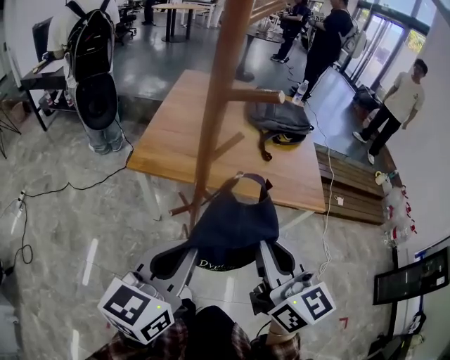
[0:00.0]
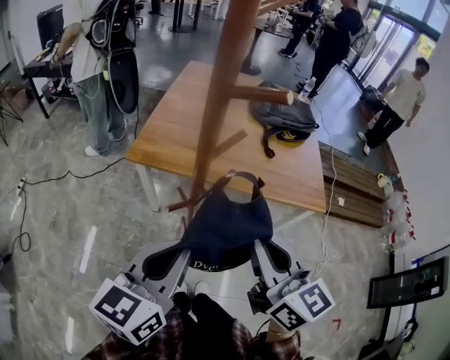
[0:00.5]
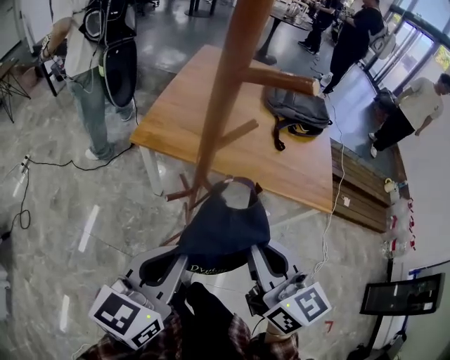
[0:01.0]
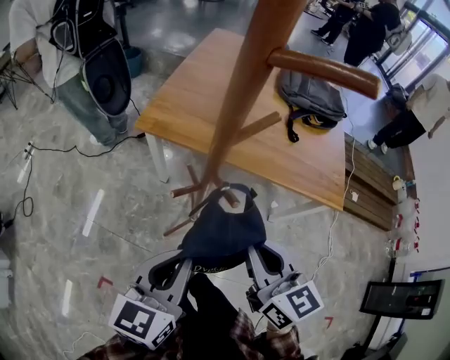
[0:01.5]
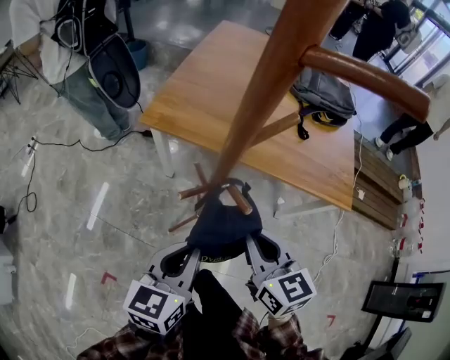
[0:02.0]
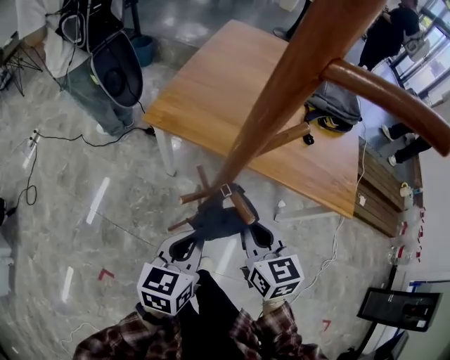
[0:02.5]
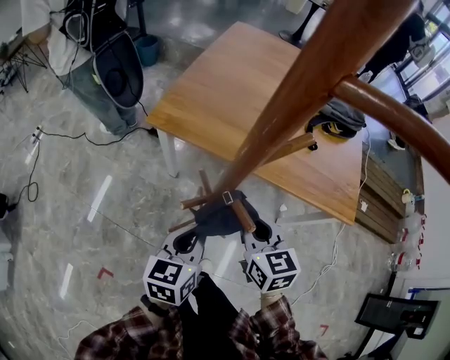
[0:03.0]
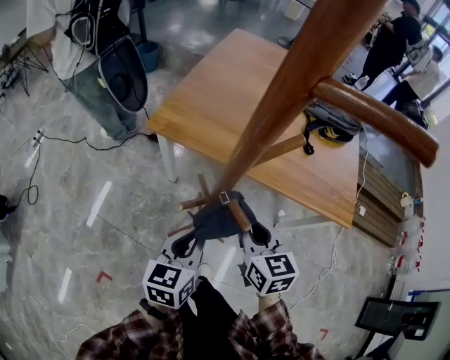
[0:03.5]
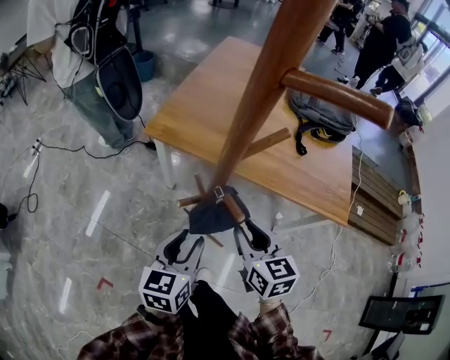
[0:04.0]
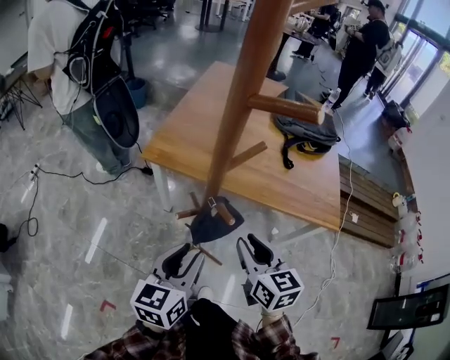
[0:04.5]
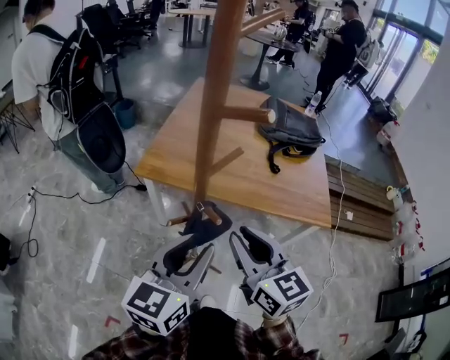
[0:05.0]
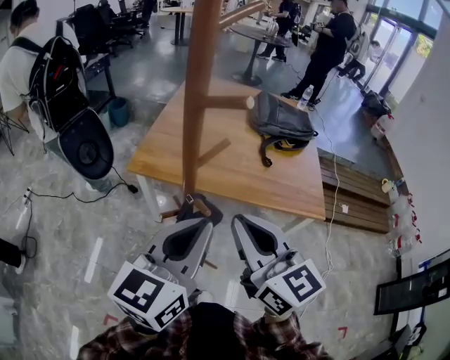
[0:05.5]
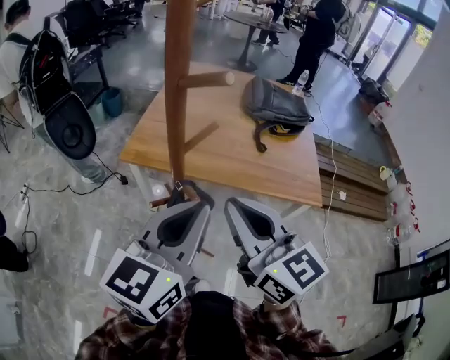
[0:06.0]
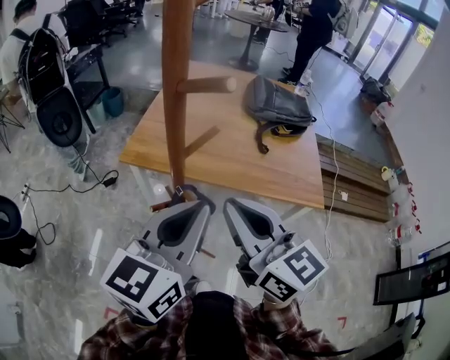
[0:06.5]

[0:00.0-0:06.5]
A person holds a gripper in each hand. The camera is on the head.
0:00.0 to 0:02.0: The right gripper moves downward and forward, roughly 20 cm, and changes its angle by some 20 degrees. The left gripper travels downward by about 15 cm.
0:02.0 to 0:04.5: The left gripper moves approximately 5 cm downward and comes back, and opens its fingers.
0:04.5 to 0:06.5: Both grippers travel together upward, roughly 20 cm. The left gripper closes up. The right gripper swivels roughly 20 degrees, and closes its fingers.

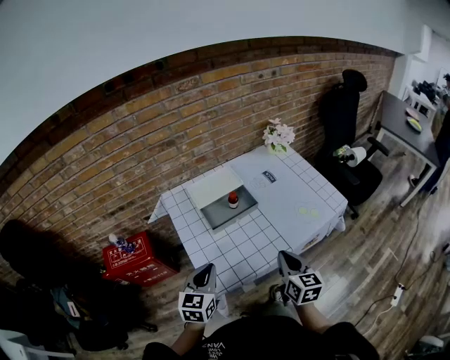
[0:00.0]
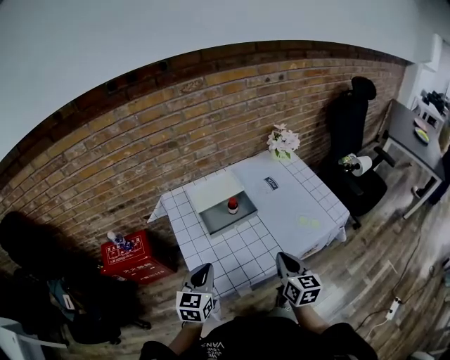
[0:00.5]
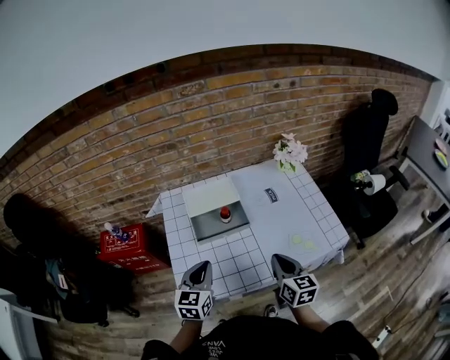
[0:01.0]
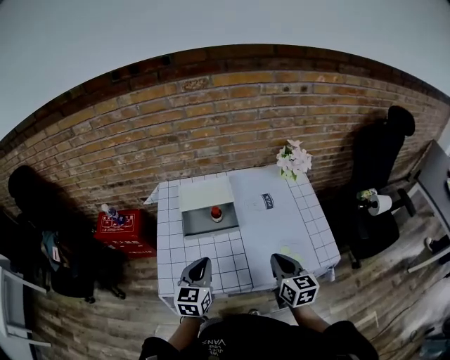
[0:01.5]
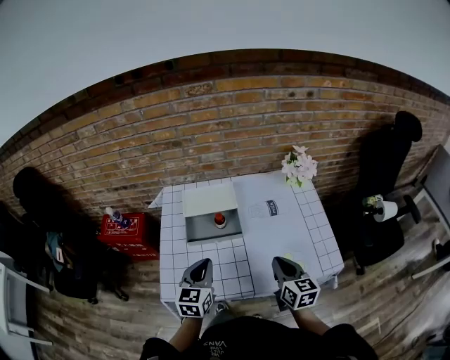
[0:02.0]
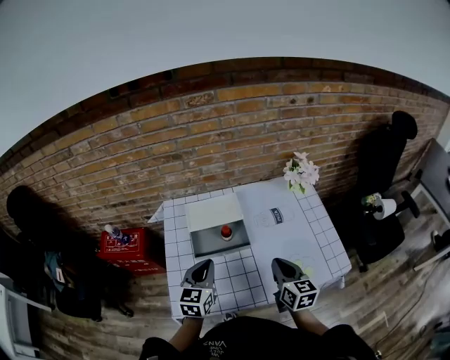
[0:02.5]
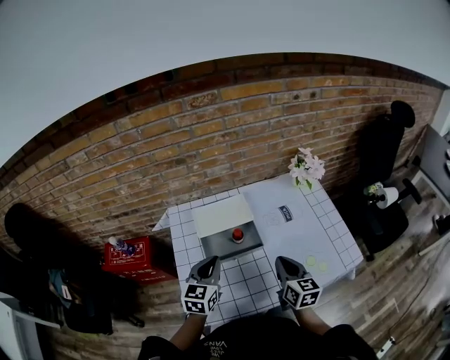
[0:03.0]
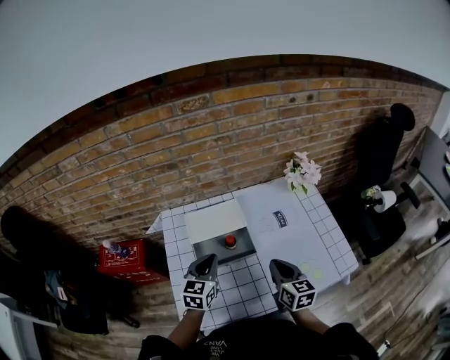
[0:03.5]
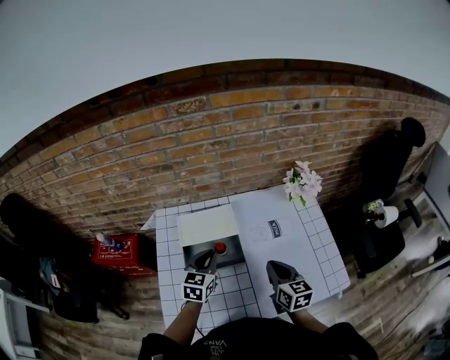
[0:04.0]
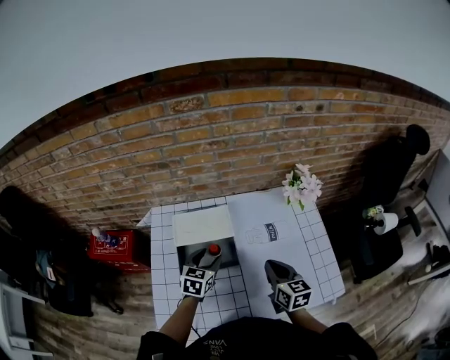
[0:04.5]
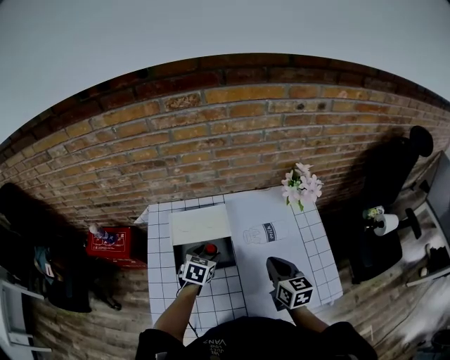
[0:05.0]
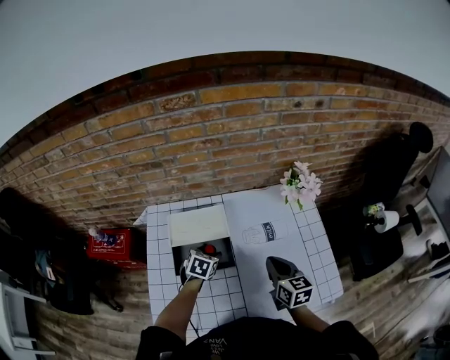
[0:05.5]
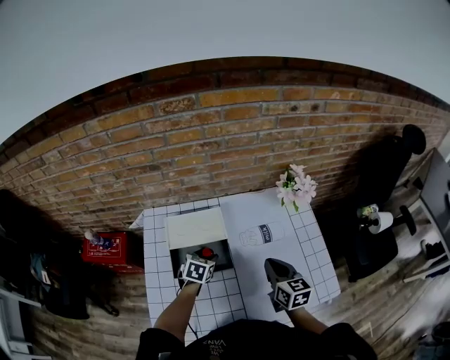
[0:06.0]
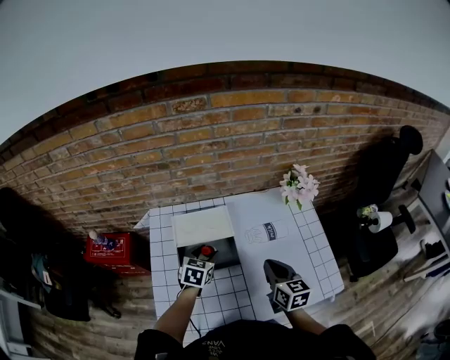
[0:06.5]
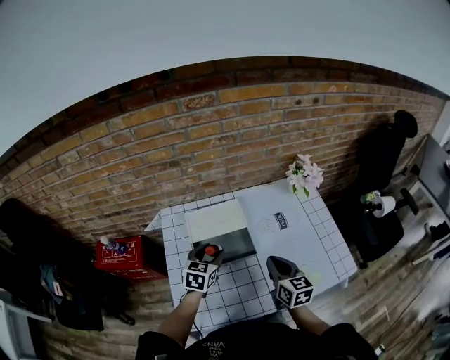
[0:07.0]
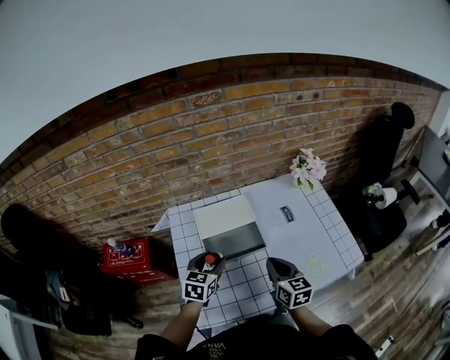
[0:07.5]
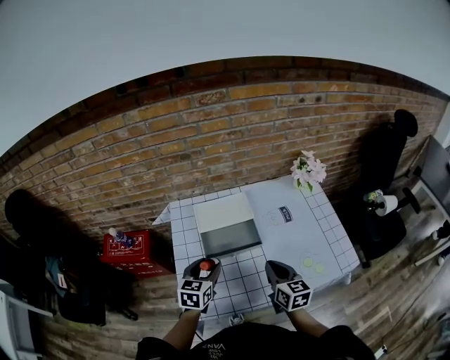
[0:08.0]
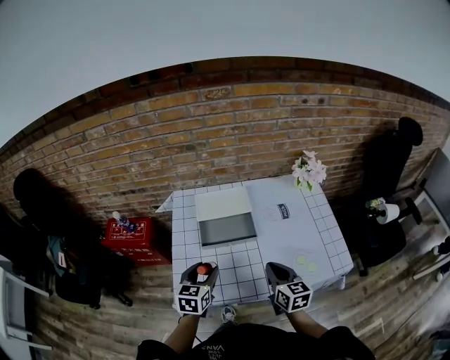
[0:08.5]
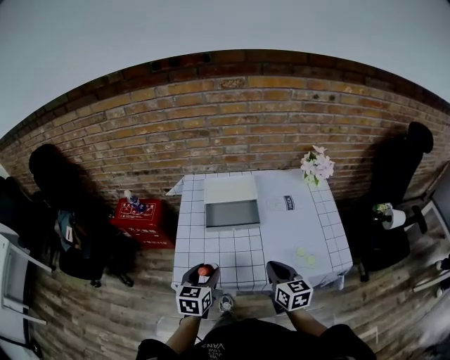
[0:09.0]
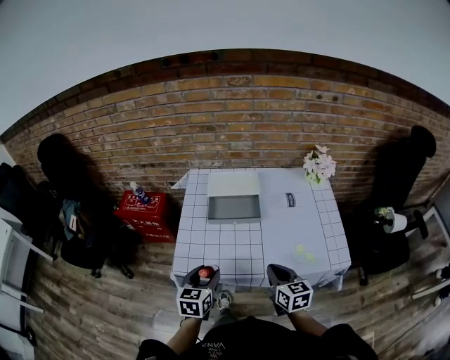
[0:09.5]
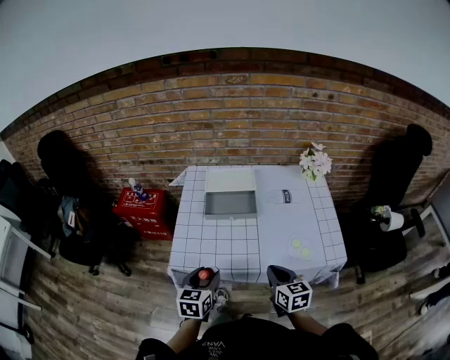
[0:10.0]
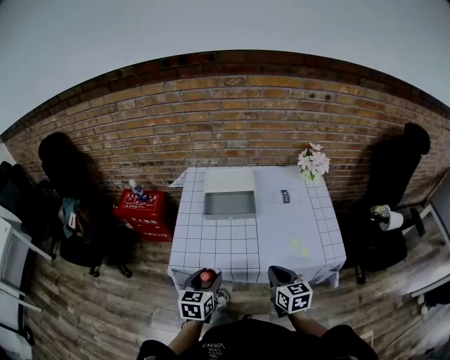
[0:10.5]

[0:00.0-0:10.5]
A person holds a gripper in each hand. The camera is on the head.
0:00.0 to 0:02.0: The left gripper travels to the right and forward by some 20 cm, and swivels roughly 20 degrees. The right gripper heads forward and to the right, covering about 20 cm, and swivels roughly 20 degrees.
0:02.0 to 0:04.0: The right gripper goes about 10 cm forward, while the left gripper is displaced forward by about 15 cm.
0:04.0 to 0:06.5: The left gripper moves downward, about 5 cm, and opens.
0:06.5 to 0:08.5: The left gripper is displaced backward by about 20 cm. Meanwhile the right gripper travels backward by approximately 15 cm.
0:08.5 to 0:10.5: The two grippers go roughly 15 cm backward.

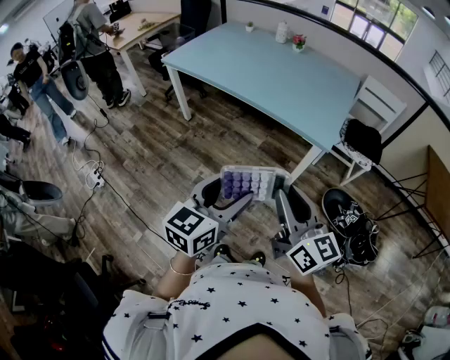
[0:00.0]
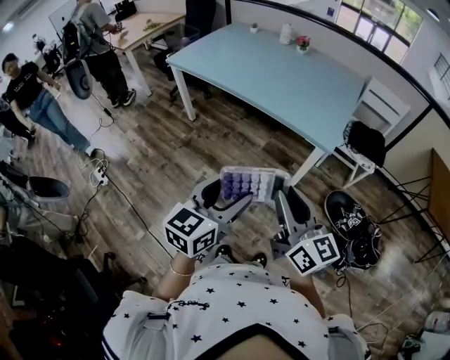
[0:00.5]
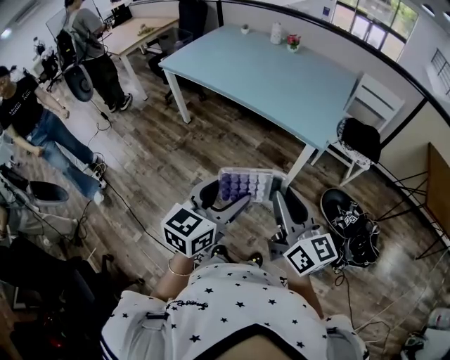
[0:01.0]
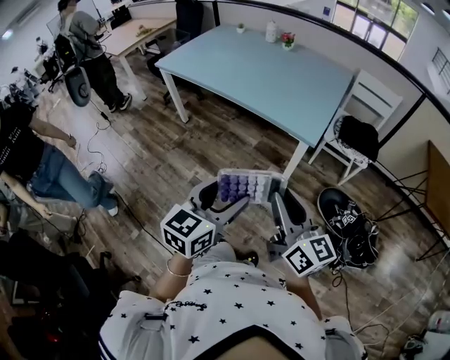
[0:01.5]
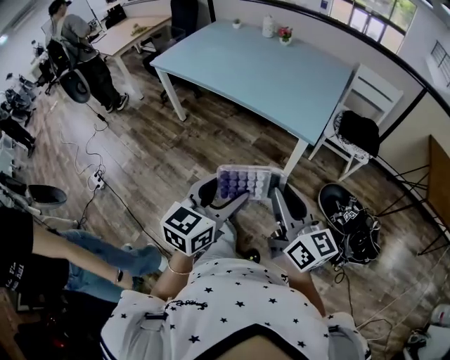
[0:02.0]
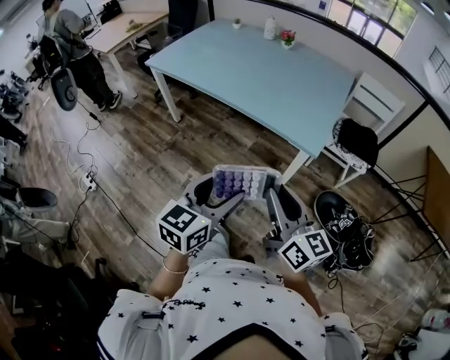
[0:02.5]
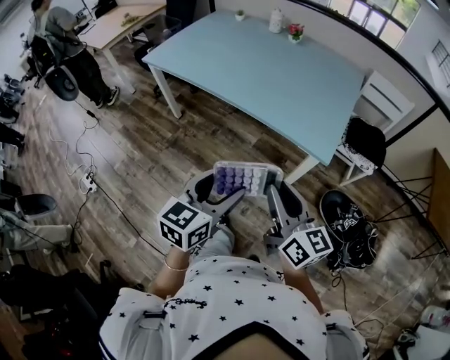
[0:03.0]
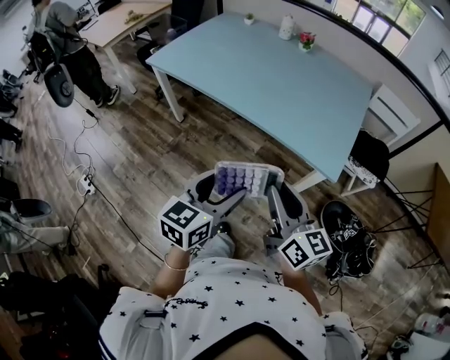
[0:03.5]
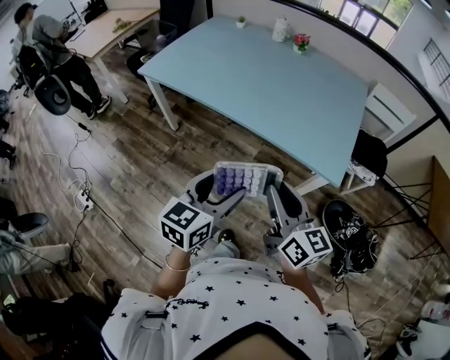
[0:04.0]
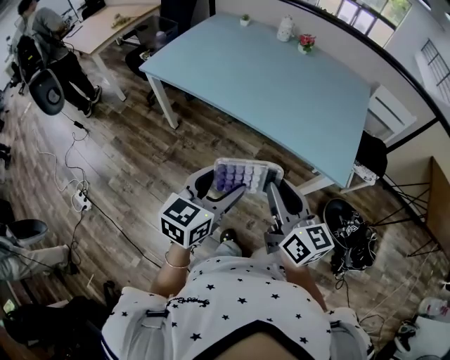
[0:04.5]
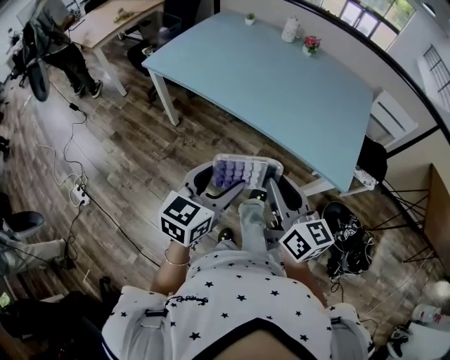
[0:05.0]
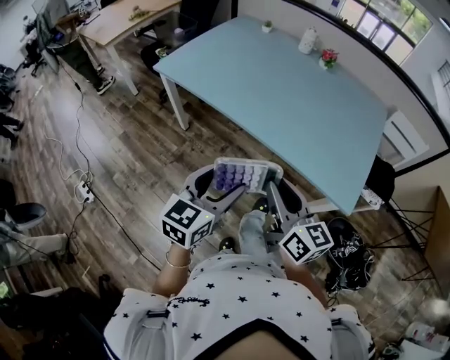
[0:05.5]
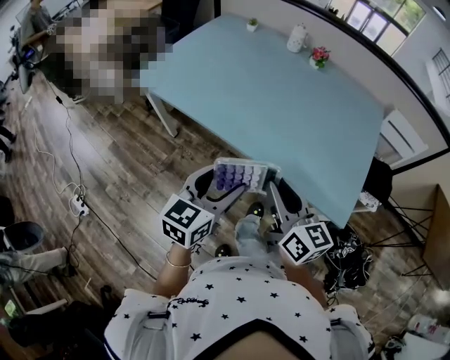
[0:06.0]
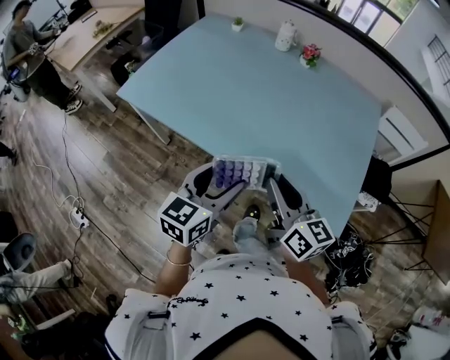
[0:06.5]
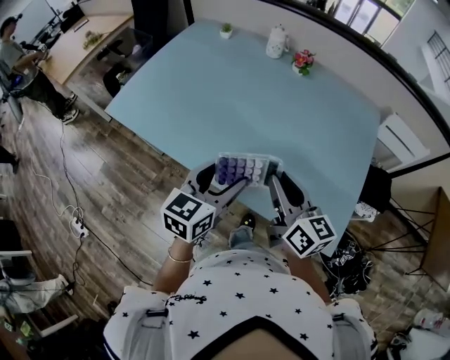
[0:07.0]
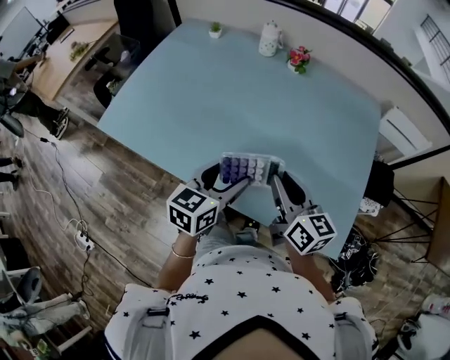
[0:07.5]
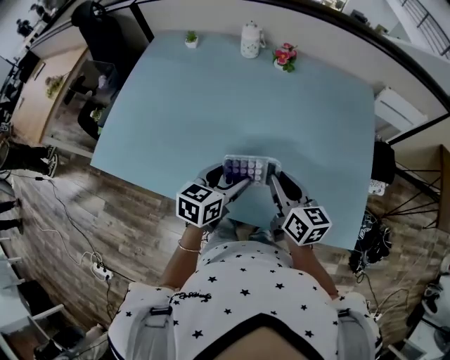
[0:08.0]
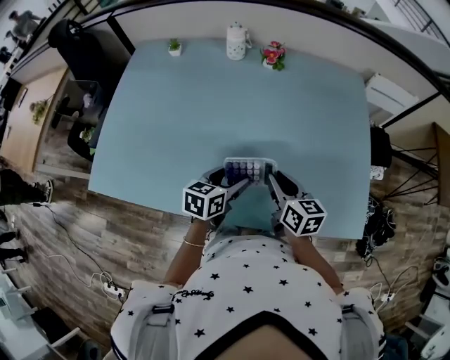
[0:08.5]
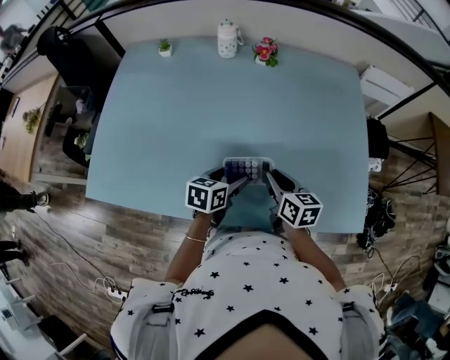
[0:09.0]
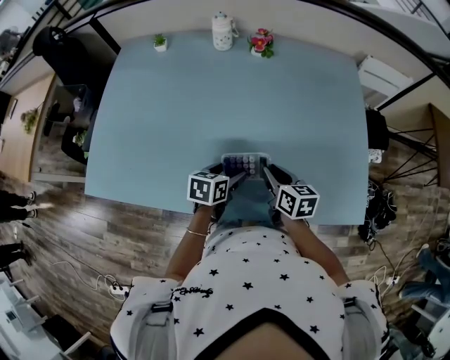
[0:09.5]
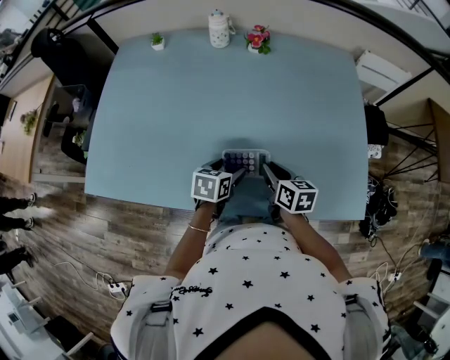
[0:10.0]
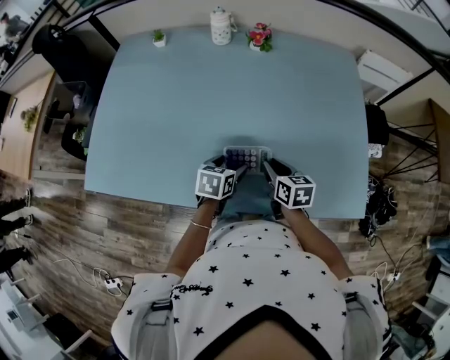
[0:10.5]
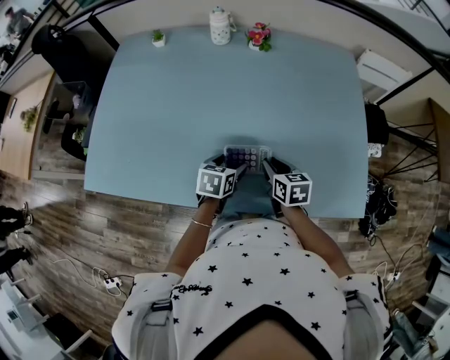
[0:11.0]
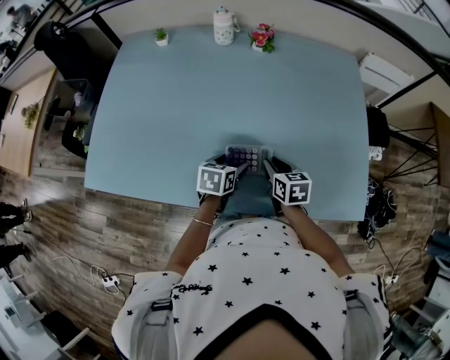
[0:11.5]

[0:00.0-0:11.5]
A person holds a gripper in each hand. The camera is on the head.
0:00.0 to 0:02.0: The two grippers go roughly 10 cm to the right.
0:02.0 to 0:04.0: The two grippers go roughly 25 cm forward and to the left.
0:04.0 to 0:06.0: Both grippers move forward, some 15 cm.
0:06.0 to 0:07.5: The two grippers go approximately 20 cm forward.
0:07.5 to 0:09.5: The right gripper is displaced downward by about 15 cm, and turns by approximately 30 degrees. The left gripper is displaced downward and forward by about 20 cm, and turns by about 30 degrees.
0:09.5 to 0:11.5: The grippers stay close to where they were, moving slightly.
